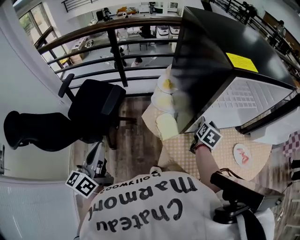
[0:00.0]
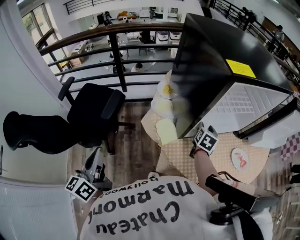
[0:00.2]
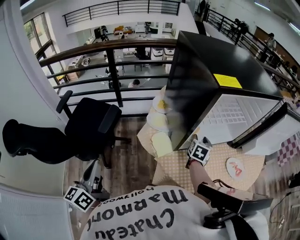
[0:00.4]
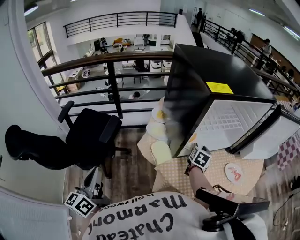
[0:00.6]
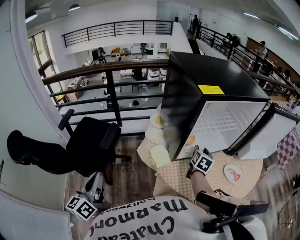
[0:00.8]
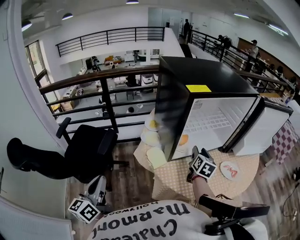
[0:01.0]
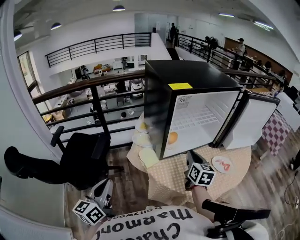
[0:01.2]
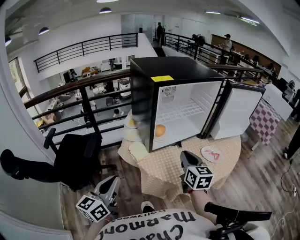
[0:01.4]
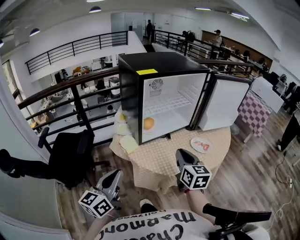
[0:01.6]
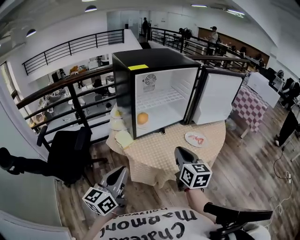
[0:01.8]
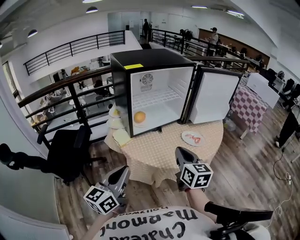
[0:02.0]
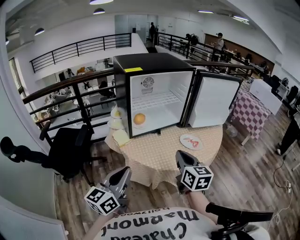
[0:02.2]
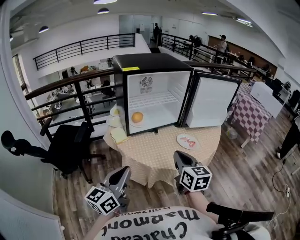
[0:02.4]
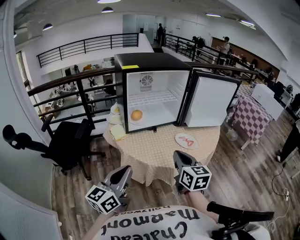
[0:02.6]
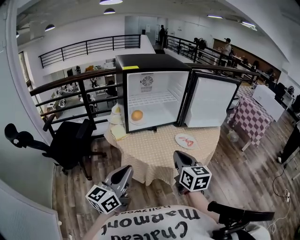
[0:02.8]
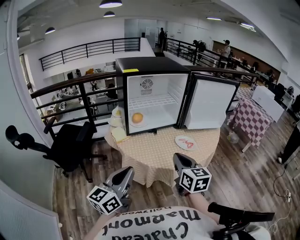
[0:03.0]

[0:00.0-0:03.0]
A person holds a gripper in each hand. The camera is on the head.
0:00.0 to 0:01.6: The left gripper shifts some 20 cm to the right, and swivels about 30 degrees, while the right gripper moves backward and upward, roughly 30 cm, turns by about 30 degrees, and closes its fingers.
0:01.6 to 0:03.0: The two grippers go approximately 20 cm to the right and backward.

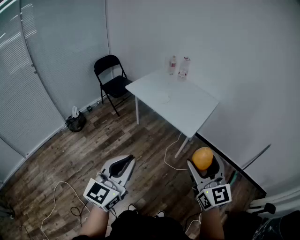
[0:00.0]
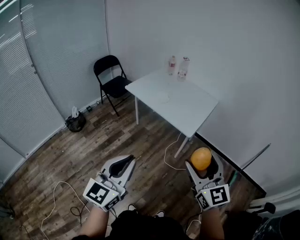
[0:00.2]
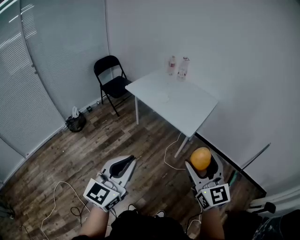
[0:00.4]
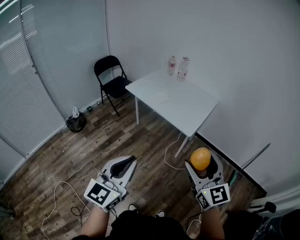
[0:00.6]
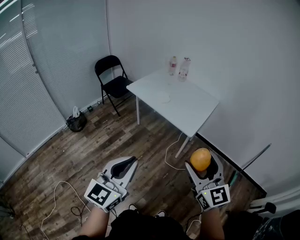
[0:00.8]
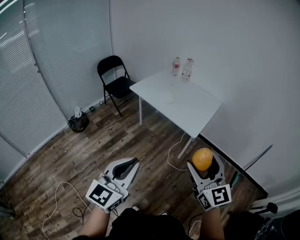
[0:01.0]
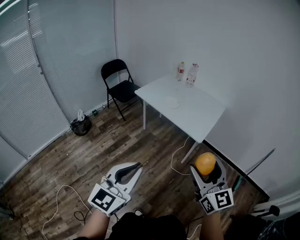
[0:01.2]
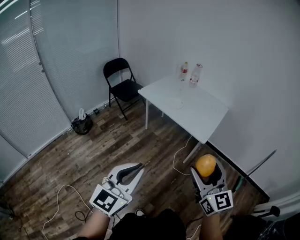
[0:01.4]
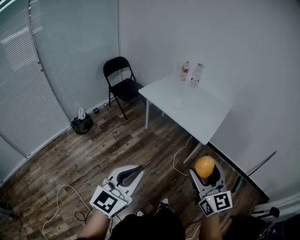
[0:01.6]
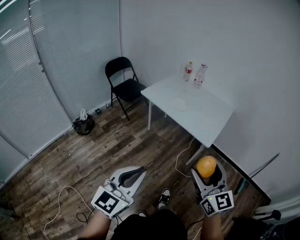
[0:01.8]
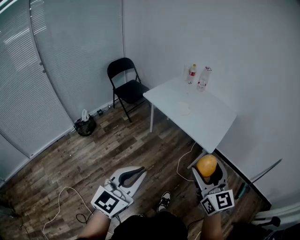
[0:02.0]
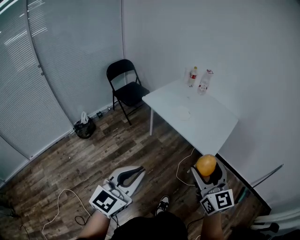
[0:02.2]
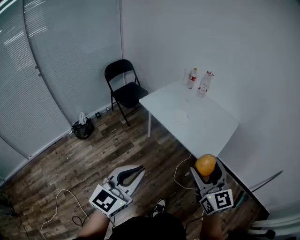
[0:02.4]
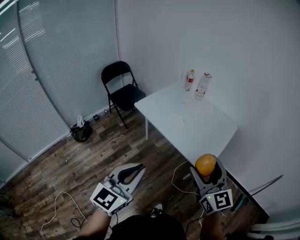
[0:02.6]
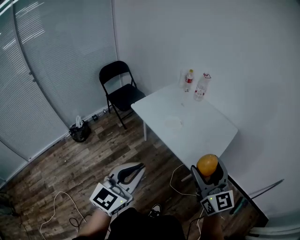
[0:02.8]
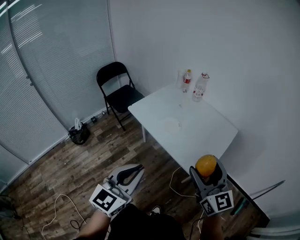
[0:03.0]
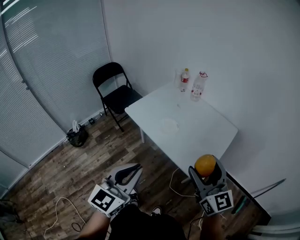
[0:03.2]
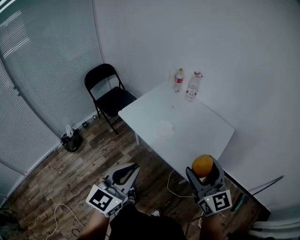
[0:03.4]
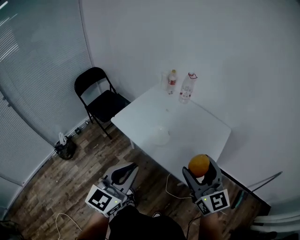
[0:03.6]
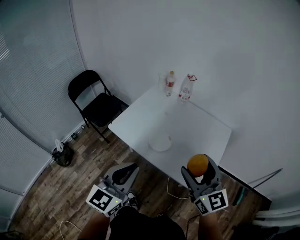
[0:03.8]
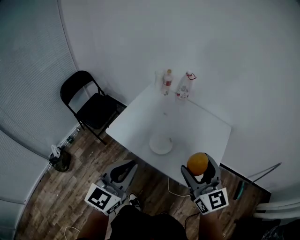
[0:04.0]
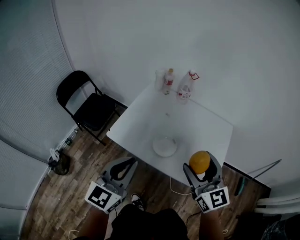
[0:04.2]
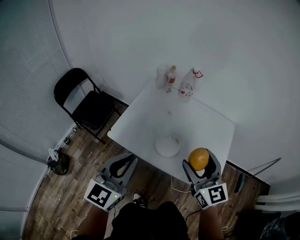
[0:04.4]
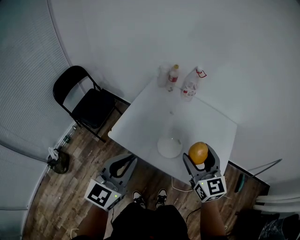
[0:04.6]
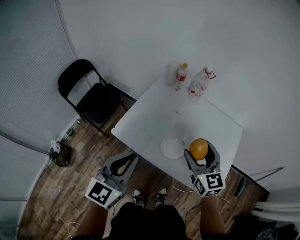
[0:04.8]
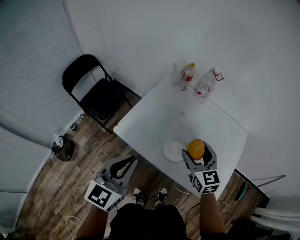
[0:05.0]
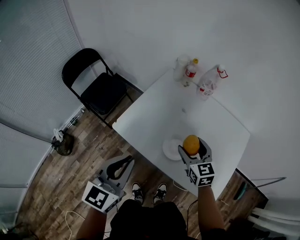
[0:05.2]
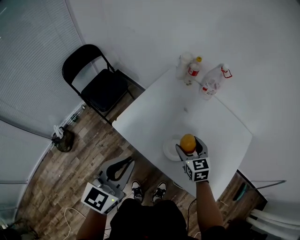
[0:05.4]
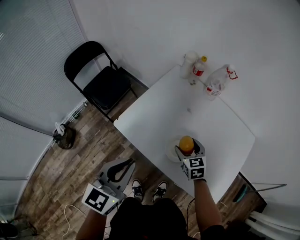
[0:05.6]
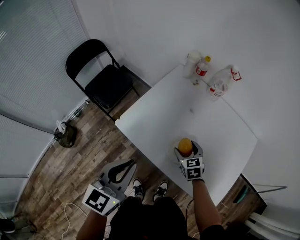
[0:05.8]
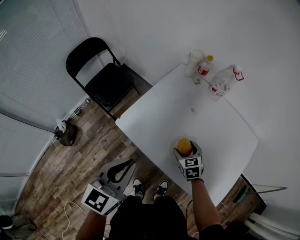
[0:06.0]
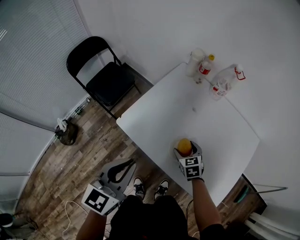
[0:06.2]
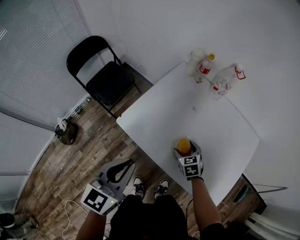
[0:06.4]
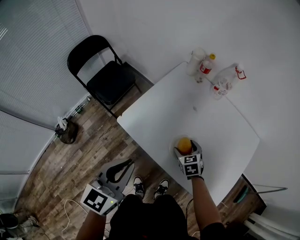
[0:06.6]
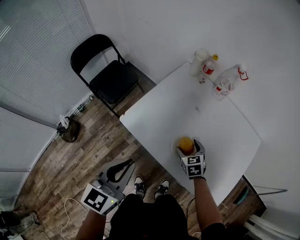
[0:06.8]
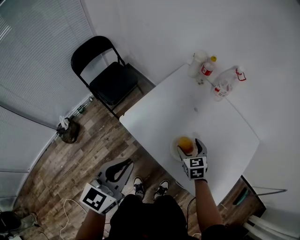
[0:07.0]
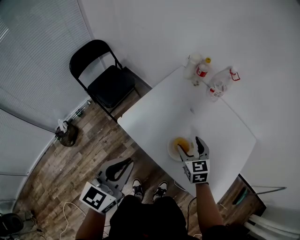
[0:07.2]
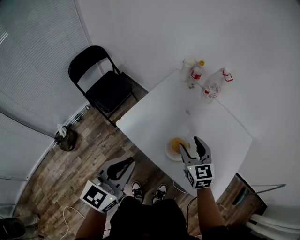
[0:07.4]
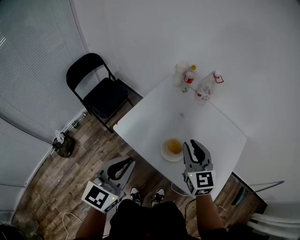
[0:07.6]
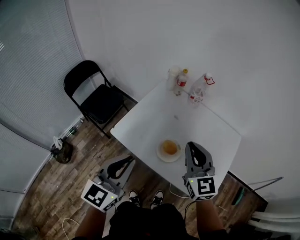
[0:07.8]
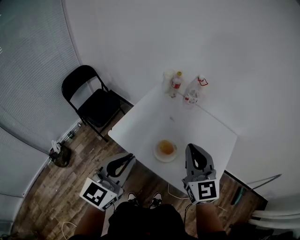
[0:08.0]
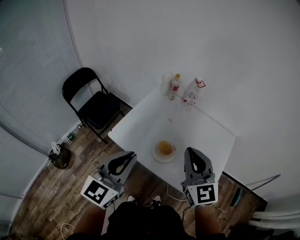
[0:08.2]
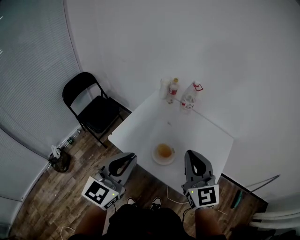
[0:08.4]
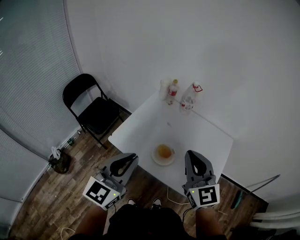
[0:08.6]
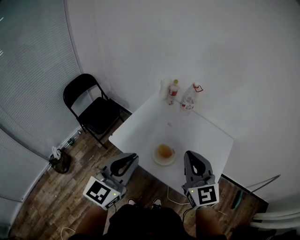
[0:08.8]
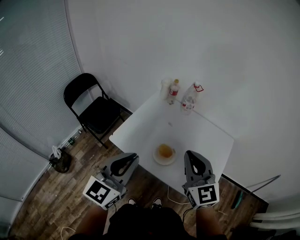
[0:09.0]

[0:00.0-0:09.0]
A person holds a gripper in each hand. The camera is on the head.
0:00.0 to 0:01.6: Both grippers move to the left, approximately 10 cm.
0:01.6 to 0:03.0: The grippers both shift forward by about 35 cm.
0:03.0 to 0:04.4: The grippers both shift forward and to the left by approximately 35 cm. The right gripper turns by roughly 20 degrees.
0:04.4 to 0:06.0: The right gripper shifts about 35 cm downward and forward, and tips its fingers downward by some 40 degrees. The left gripper moves downward and forward, roughly 10 cm.
0:06.0 to 0:07.6: The right gripper heads upward, covering some 25 cm, angles its fingers upward, by approximately 30 degrees, and closes its fingers; the left gripper goes some 5 cm upward.
0:07.6 to 0:09.0: The left gripper goes roughly 10 cm upward; the right gripper travels upward and backward by approximately 15 cm.

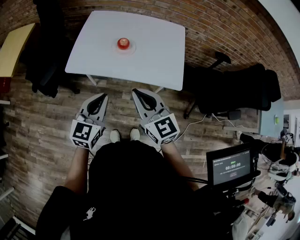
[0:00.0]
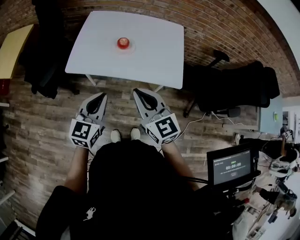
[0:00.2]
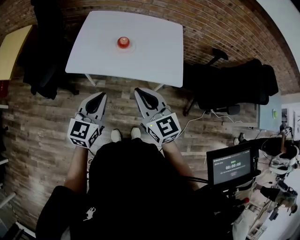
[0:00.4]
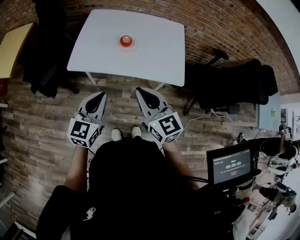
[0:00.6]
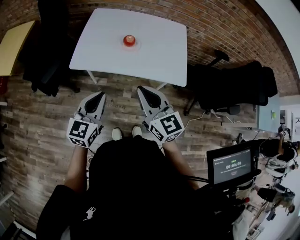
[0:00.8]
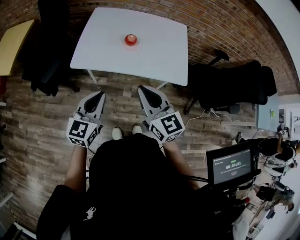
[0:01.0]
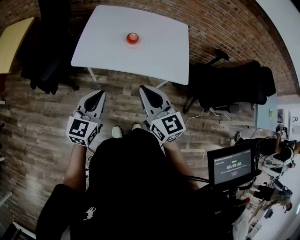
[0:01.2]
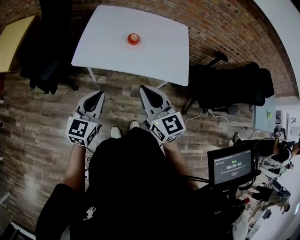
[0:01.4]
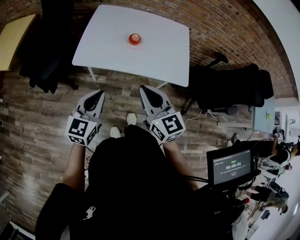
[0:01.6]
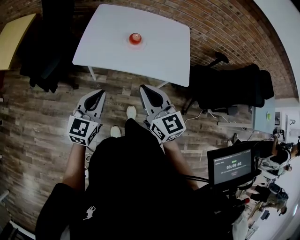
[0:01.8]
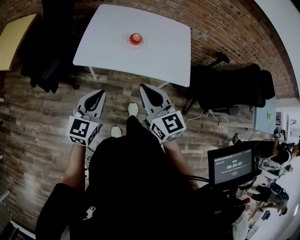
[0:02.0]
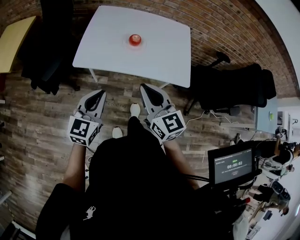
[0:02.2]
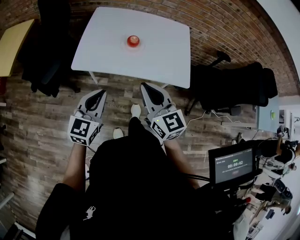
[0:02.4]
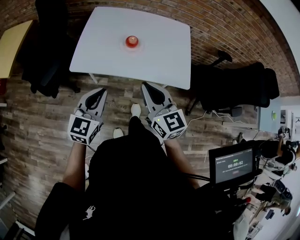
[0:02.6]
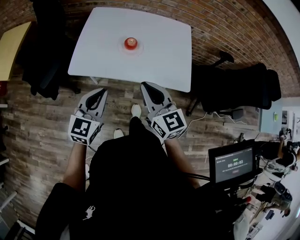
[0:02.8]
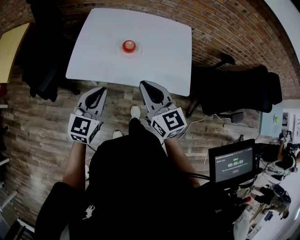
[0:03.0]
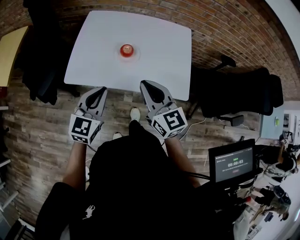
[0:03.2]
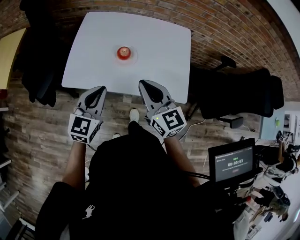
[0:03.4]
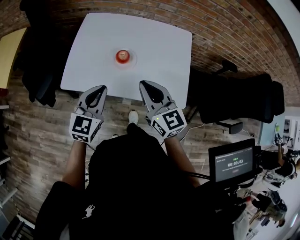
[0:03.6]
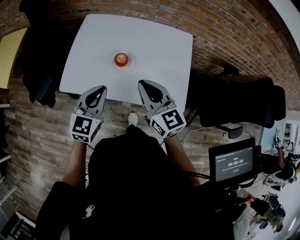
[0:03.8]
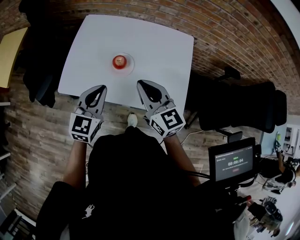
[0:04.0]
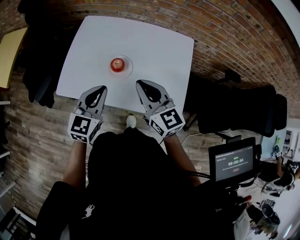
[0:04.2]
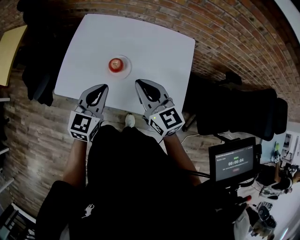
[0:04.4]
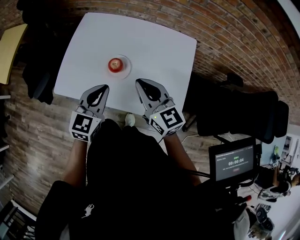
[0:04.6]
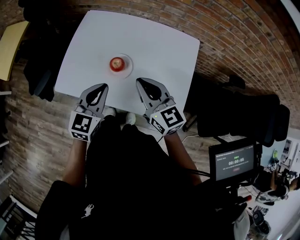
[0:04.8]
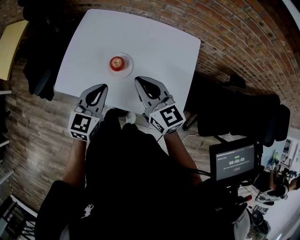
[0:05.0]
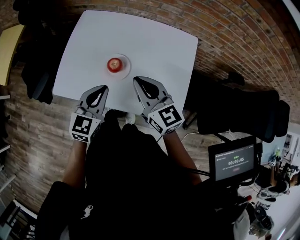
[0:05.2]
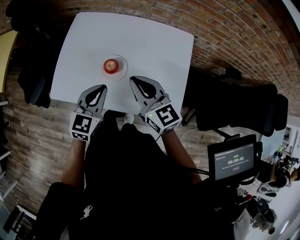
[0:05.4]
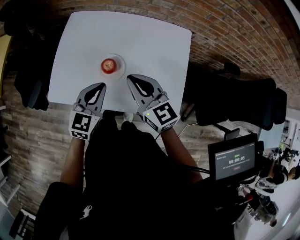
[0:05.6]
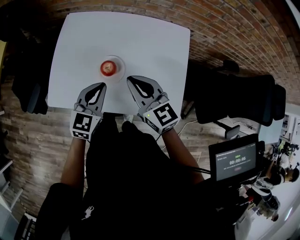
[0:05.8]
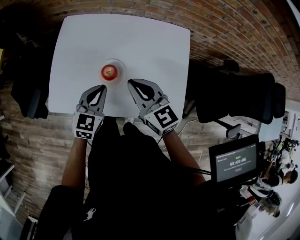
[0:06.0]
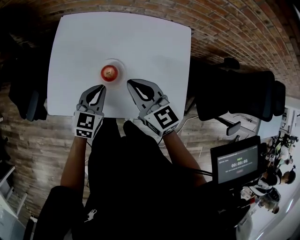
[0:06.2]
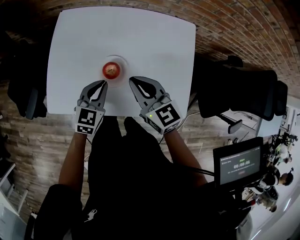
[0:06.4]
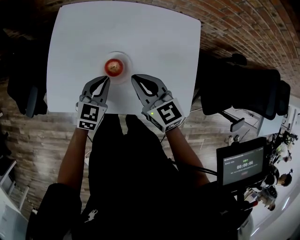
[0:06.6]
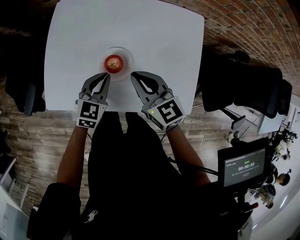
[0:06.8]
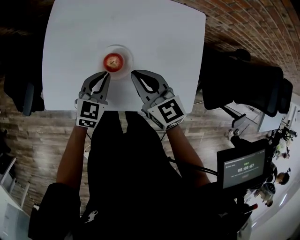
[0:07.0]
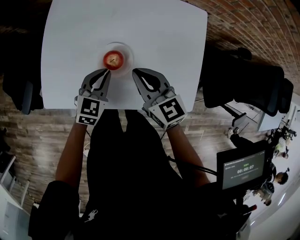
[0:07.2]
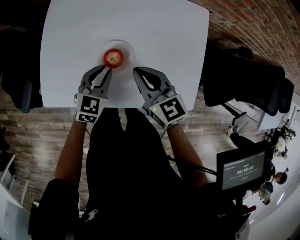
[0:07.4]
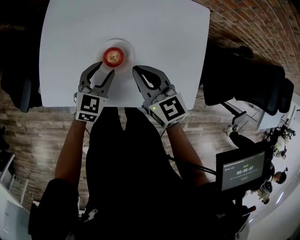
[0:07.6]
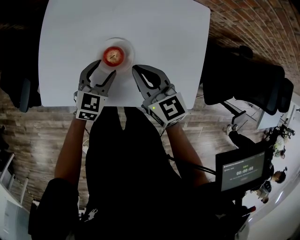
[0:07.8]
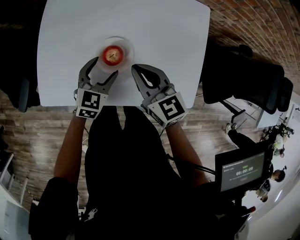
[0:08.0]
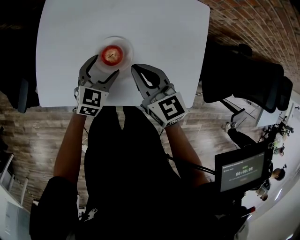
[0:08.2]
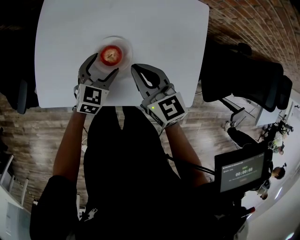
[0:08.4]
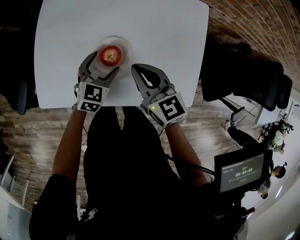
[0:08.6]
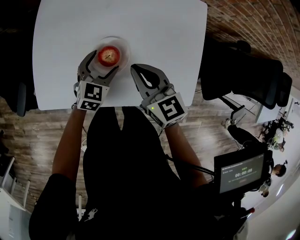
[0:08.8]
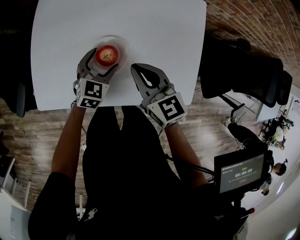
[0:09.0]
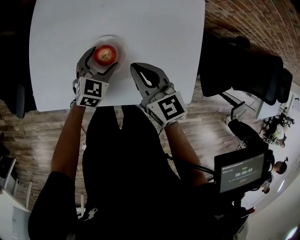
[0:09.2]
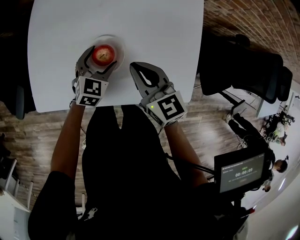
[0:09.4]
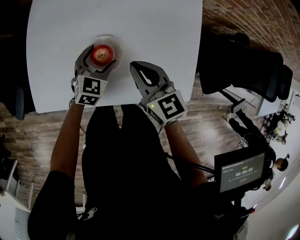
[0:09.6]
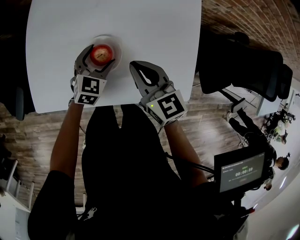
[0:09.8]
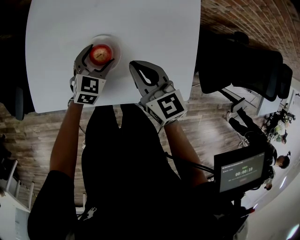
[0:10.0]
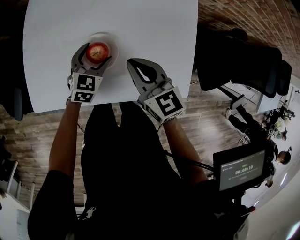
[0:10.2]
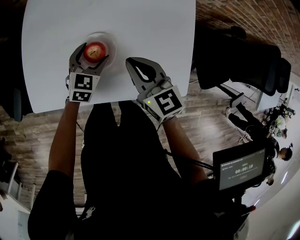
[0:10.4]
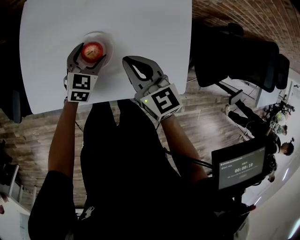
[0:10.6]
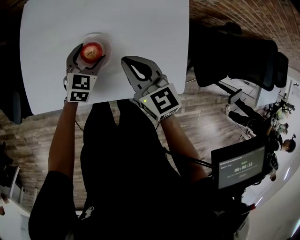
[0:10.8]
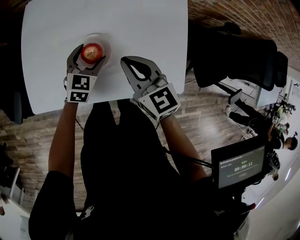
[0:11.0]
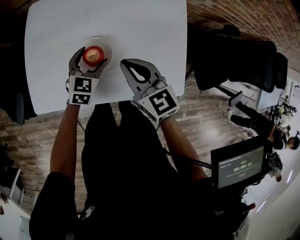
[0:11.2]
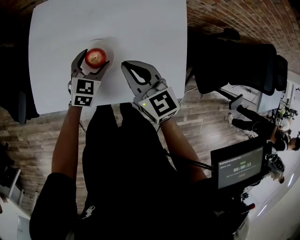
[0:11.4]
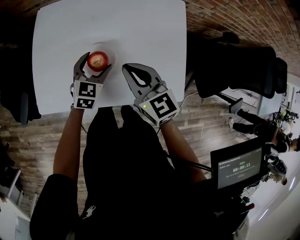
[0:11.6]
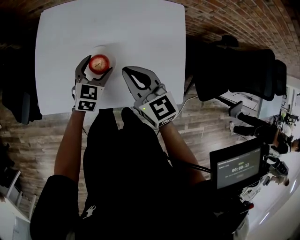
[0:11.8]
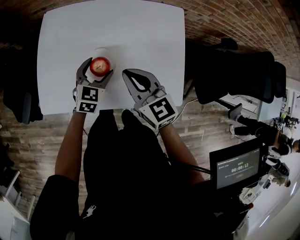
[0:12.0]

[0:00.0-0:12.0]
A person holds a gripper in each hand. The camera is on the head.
0:00.0 to 0:01.6: The right gripper travels to the left by approximately 5 cm, while the left gripper is displaced to the left by roughly 10 cm.
0:01.6 to 0:03.0: Both grippers move forward, roughly 10 cm.
0:03.0 to 0:04.4: Both grippers travel together forward and to the right, roughly 15 cm.
0:04.4 to 0:06.0: The left gripper shifts approximately 10 cm downward and forward, while the right gripper is displaced forward by some 5 cm.
0:06.0 to 0:07.6: The grippers both shift downward by some 10 cm. The left gripper opens its fingers.
0:07.6 to 0:09.0: The left gripper moves approximately 5 cm, and opens its fingers.
0:09.0 to 0:10.4: The grippers stay close to where they were, moving slightly.
0:10.4 to 0:12.0: Both grippers travel together upward, some 5 cm.
